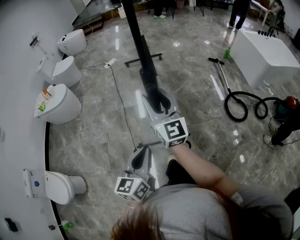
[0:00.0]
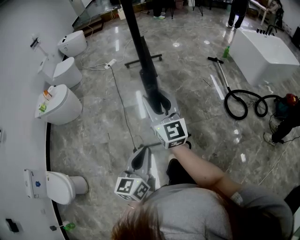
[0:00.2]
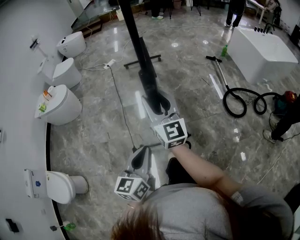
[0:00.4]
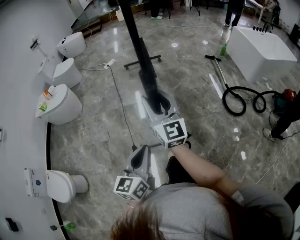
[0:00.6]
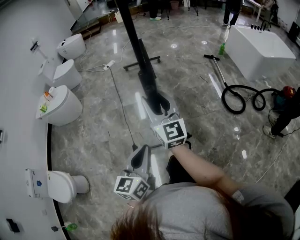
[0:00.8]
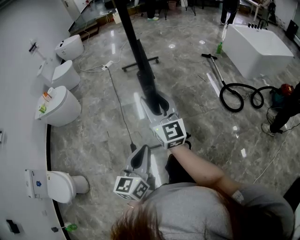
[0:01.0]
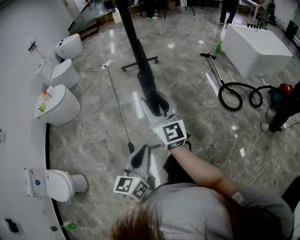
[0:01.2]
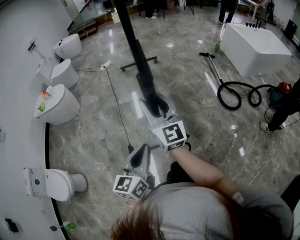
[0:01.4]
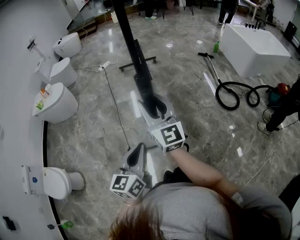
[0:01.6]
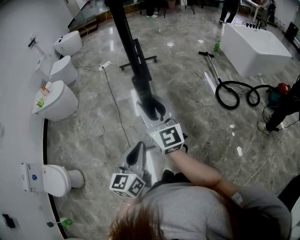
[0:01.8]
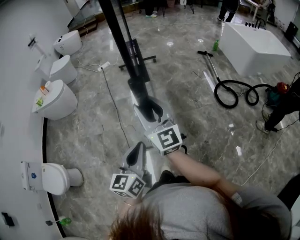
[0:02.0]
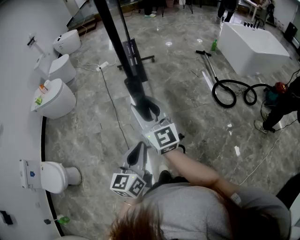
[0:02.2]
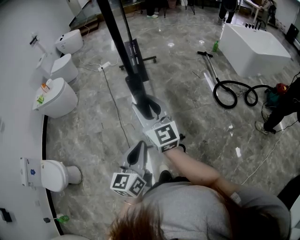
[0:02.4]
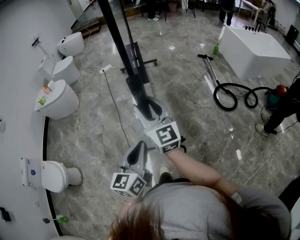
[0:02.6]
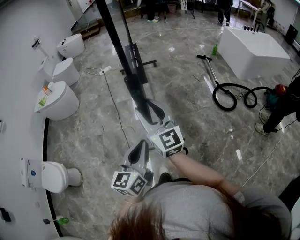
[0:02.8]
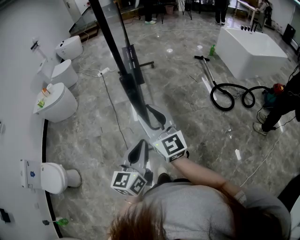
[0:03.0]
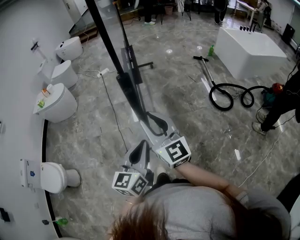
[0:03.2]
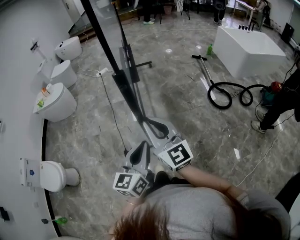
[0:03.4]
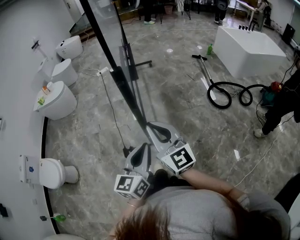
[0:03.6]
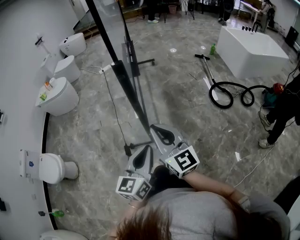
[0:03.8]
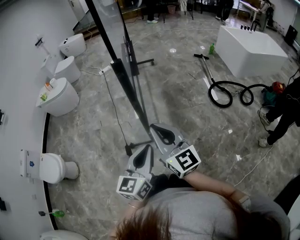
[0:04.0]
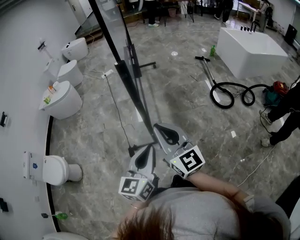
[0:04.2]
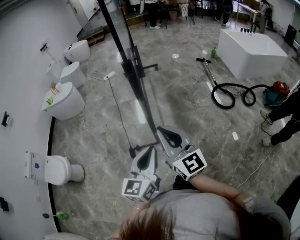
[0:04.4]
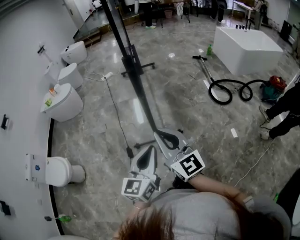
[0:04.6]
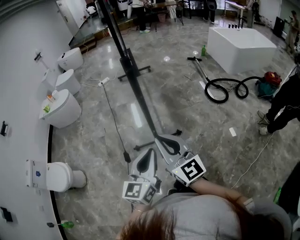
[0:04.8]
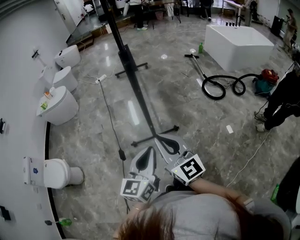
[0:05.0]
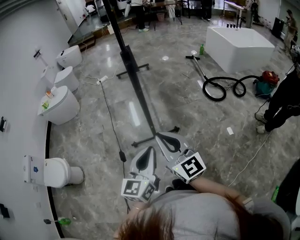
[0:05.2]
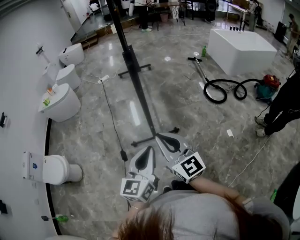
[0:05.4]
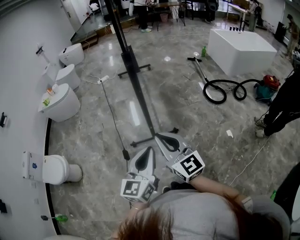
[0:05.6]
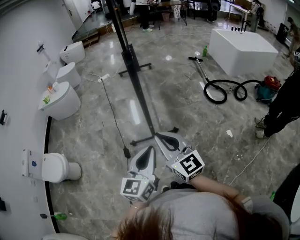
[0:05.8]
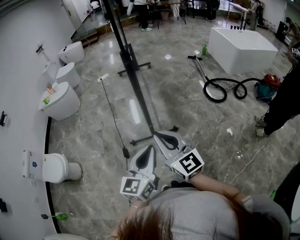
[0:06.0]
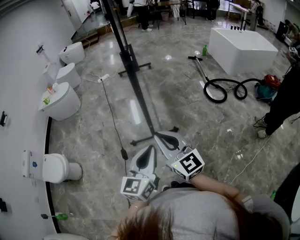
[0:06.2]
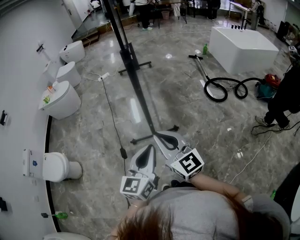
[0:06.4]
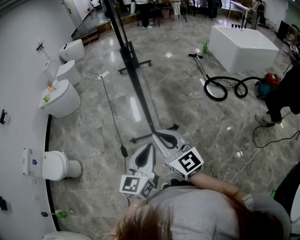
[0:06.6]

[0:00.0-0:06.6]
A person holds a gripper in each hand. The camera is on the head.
0.0 to 1.6 s: The grippers both shift backward by about 10 cm.
1.6 to 3.2 s: The right gripper goes approximately 15 cm backward; the left gripper heads to the right and backward, covering roughly 10 cm.
3.2 to 5.0 s: The two grippers go some 20 cm backward. The right gripper closes up.
5.0 to 6.6 s: There are only small adjustments of the grippers.

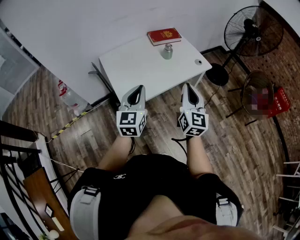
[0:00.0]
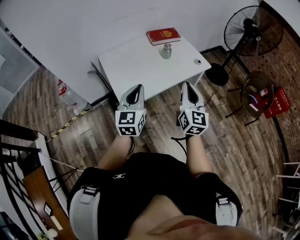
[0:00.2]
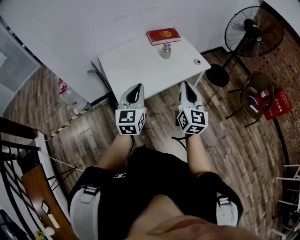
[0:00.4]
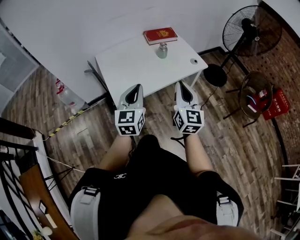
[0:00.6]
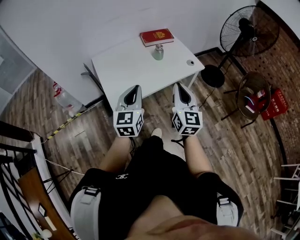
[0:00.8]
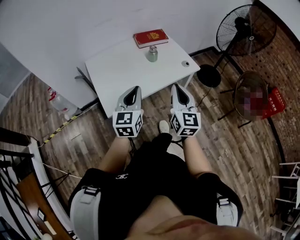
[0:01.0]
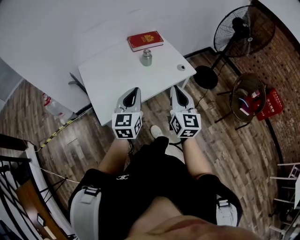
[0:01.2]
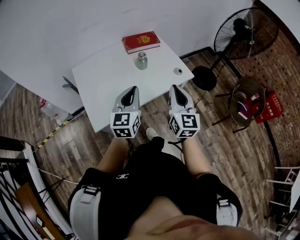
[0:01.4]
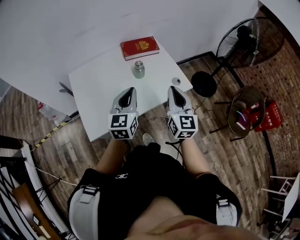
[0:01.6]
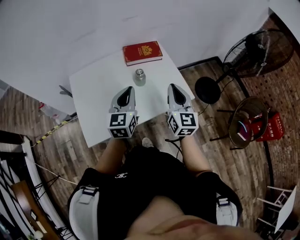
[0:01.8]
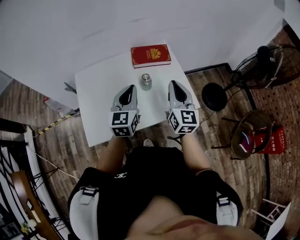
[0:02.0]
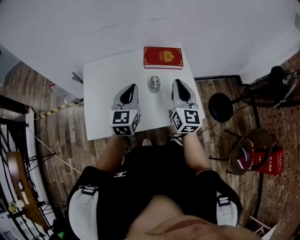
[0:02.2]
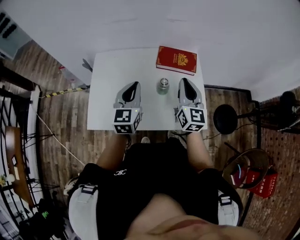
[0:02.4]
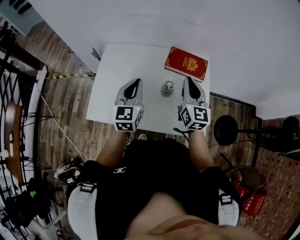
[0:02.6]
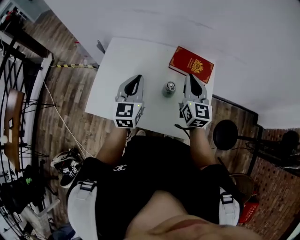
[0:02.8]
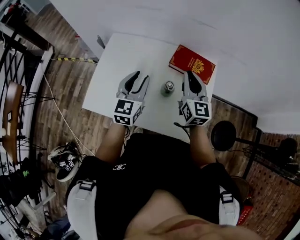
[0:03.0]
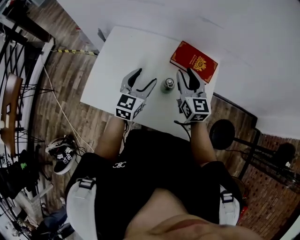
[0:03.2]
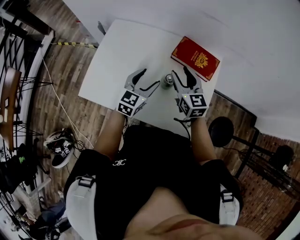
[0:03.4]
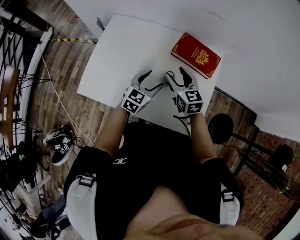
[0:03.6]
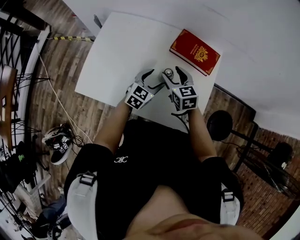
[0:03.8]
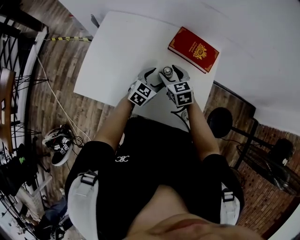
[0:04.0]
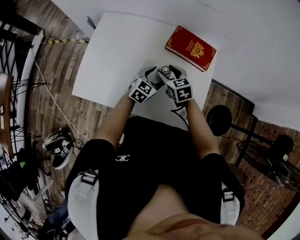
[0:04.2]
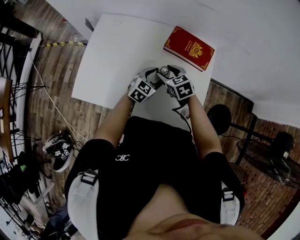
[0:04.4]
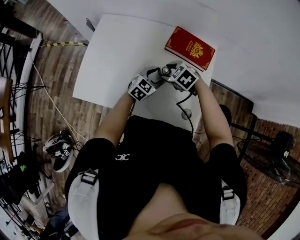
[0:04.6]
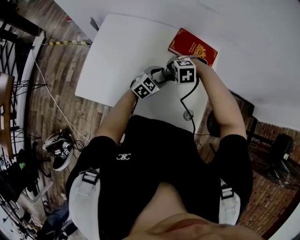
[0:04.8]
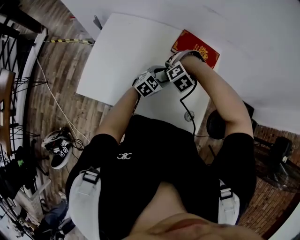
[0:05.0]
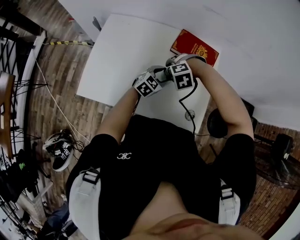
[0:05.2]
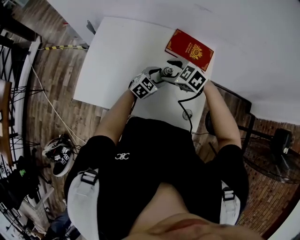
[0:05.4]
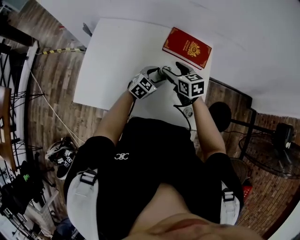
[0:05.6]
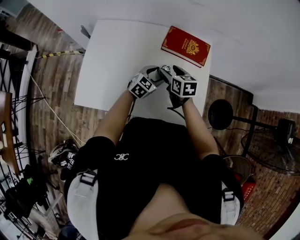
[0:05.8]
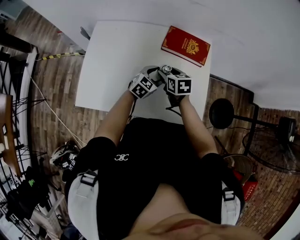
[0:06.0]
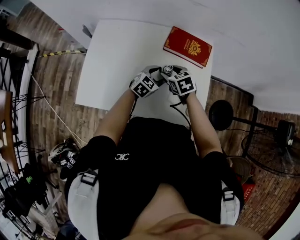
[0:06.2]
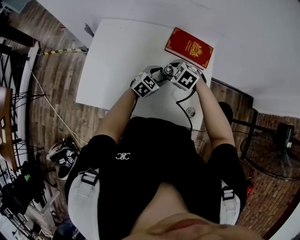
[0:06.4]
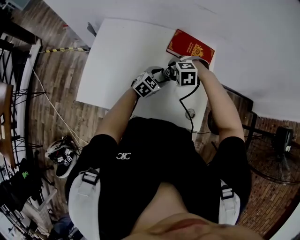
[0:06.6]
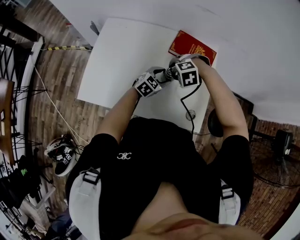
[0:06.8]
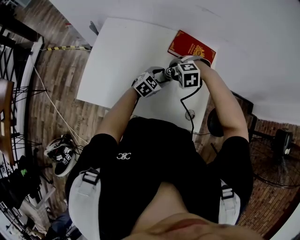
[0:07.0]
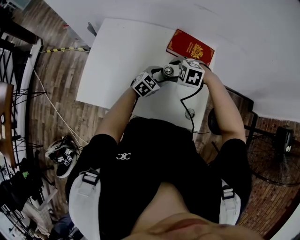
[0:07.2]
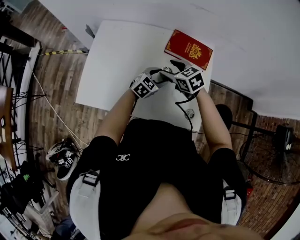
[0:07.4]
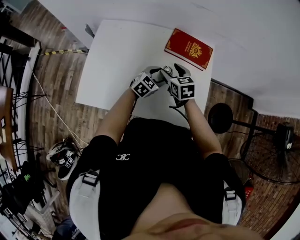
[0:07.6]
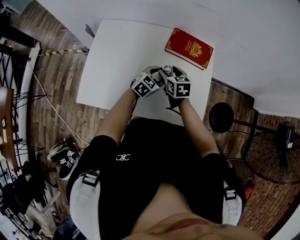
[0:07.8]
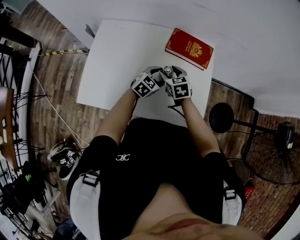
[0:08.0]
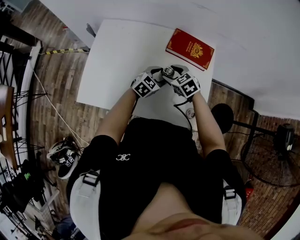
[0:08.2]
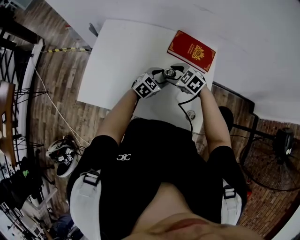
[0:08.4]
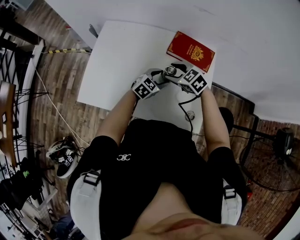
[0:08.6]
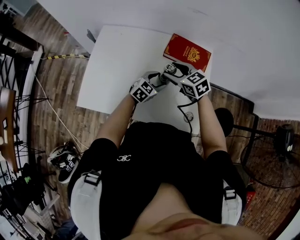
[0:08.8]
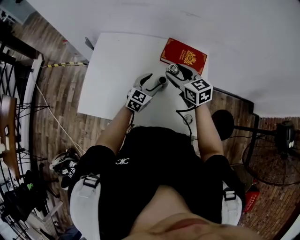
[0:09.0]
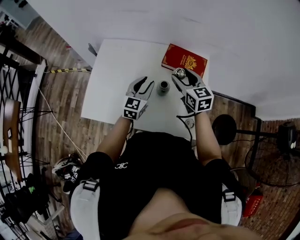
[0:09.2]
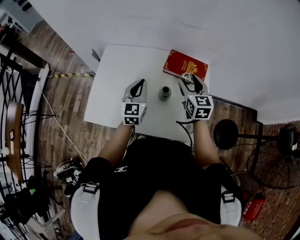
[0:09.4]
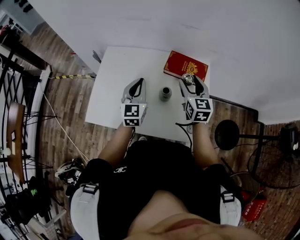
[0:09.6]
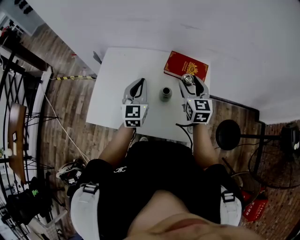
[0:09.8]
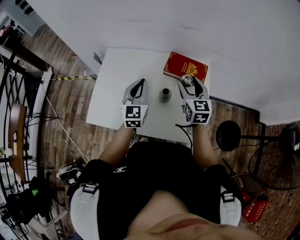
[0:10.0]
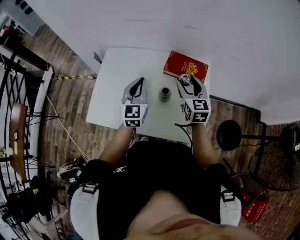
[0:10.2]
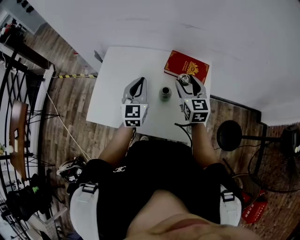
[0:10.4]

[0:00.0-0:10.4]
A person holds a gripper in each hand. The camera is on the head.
0.0 to 1.4 s: The grippers both shift forward and to the right by roughly 20 cm.
1.4 to 3.0 s: The right gripper changes place by some 40 cm, and rotates some 40 degrees. Meanwhile the left gripper ends up roughly 25 cm from where it was, and rotates about 40 degrees.
3.0 to 4.4 s: The right gripper is displaced downward by about 20 cm, angles its fingers downward, by approximately 40 degrees, and opens. The left gripper heads downward and to the right, covering about 25 cm, changes its angle by roughly 30 degrees, and opens.
4.4 to 6.0 s: The right gripper reaches some 5 cm upward, then returns, and changes its angle by roughly 30 degrees.
6.0 to 7.4 s: The right gripper travels upward by roughly 5 cm, and changes its angle by approximately 30 degrees.
7.4 to 9.0 s: Both grippers travel together upward, about 5 cm. The right gripper turns by approximately 20 degrees.
9.0 to 10.4 s: The left gripper heads upward and to the left, covering roughly 20 cm, turns by about 30 degrees, and closes, while the right gripper moves to the right, approximately 5 cm, and swivels roughly 20 degrees.

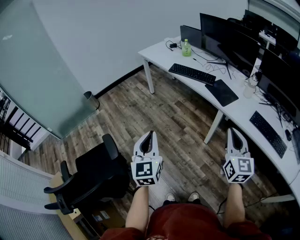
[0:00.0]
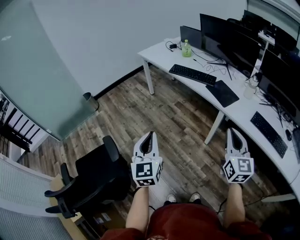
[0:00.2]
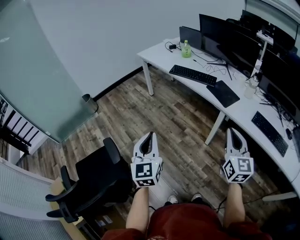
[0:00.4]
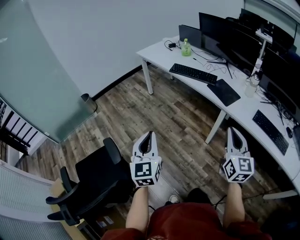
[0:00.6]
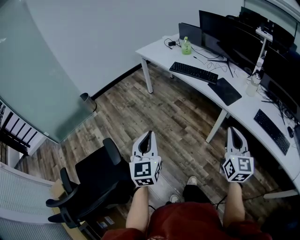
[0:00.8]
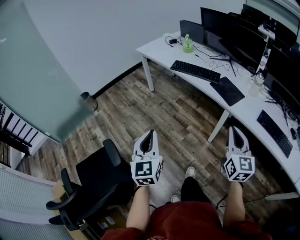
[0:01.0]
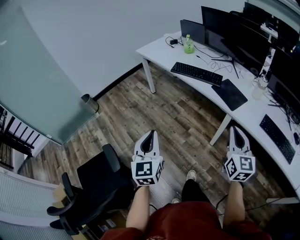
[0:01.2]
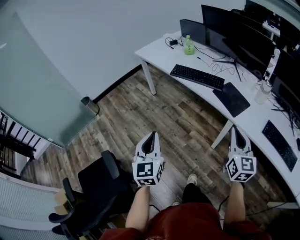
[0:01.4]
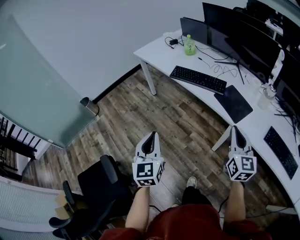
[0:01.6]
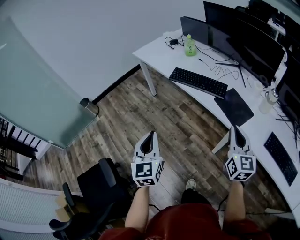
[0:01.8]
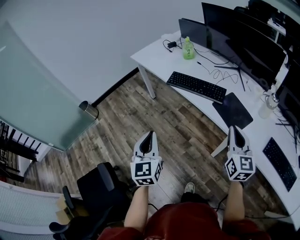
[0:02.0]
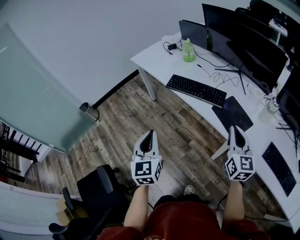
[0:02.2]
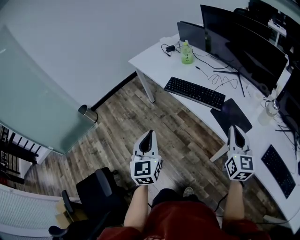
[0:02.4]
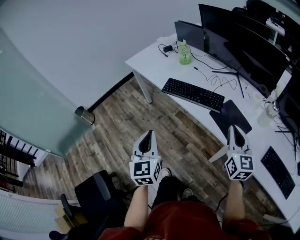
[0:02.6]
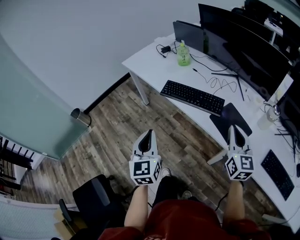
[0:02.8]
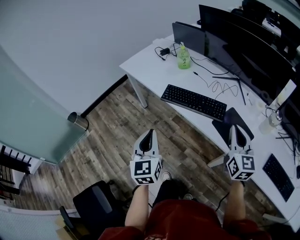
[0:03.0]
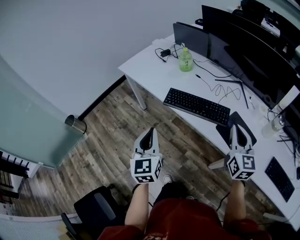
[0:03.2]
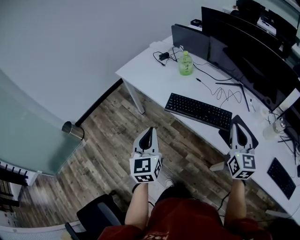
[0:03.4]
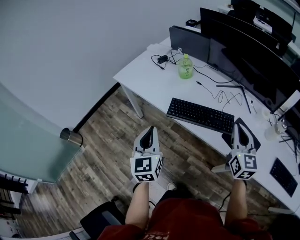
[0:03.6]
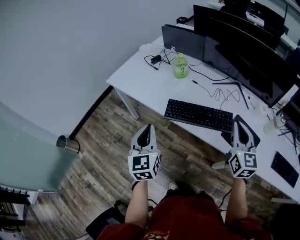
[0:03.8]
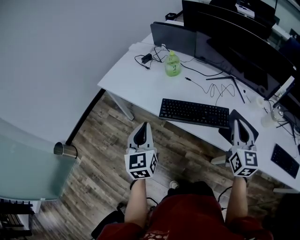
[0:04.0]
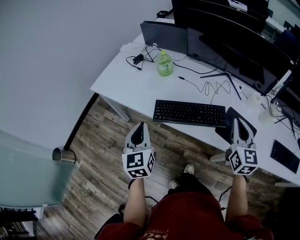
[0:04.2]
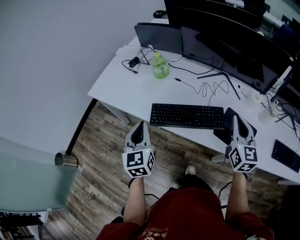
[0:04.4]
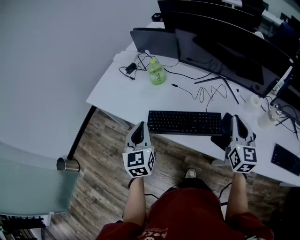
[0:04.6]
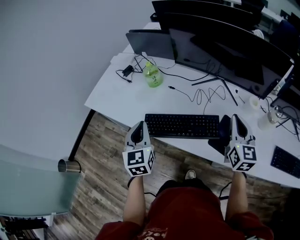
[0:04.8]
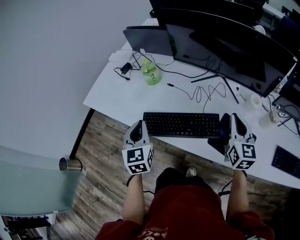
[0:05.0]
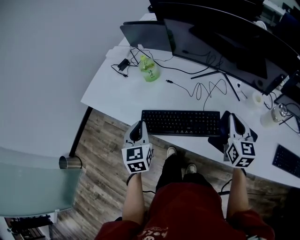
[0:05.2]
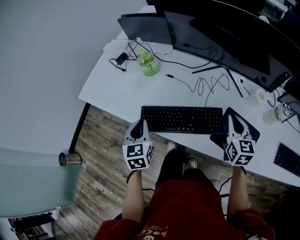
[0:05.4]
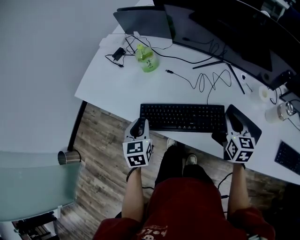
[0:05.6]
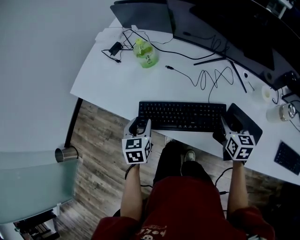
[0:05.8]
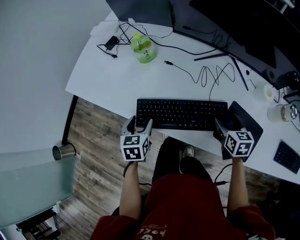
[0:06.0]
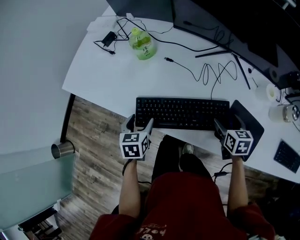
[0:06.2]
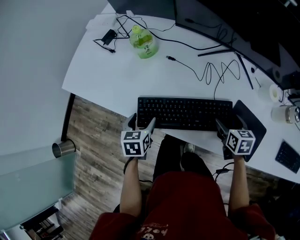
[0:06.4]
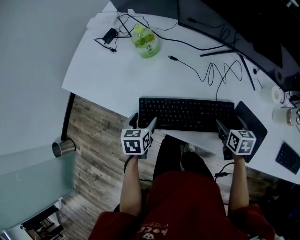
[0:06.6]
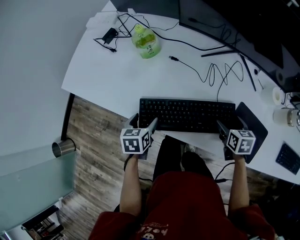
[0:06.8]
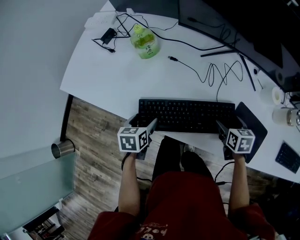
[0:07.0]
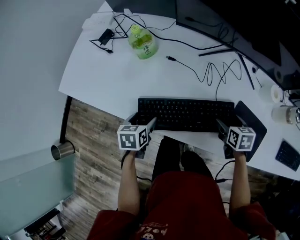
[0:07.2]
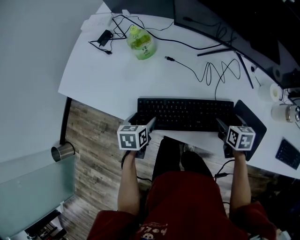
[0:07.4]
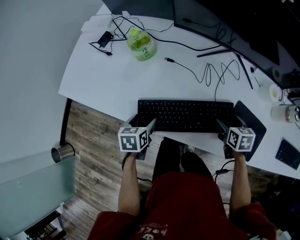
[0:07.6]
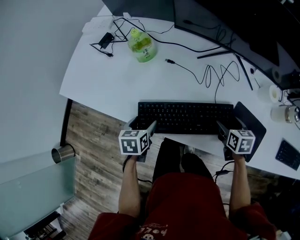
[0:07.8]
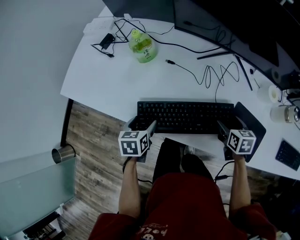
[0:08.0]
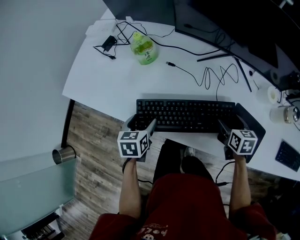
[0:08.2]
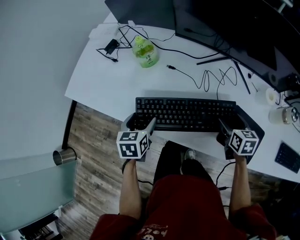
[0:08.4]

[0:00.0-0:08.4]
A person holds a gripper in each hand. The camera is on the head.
0.0 to 1.4 s: Both grippers move forward, some 15 cm.
1.4 to 2.8 s: Both grippers travel together forward, approximately 25 cm.
2.8 to 4.2 s: The left gripper travels forward by some 30 cm. Meanwhile the right gripper moves forward and to the left, some 15 cm, and rotates roughly 20 degrees.
4.2 to 5.6 s: The left gripper heads forward, downward and to the right, covering some 20 cm, and rotates approximately 20 degrees. Meanwhile the right gripper is displaced downward, forward and to the right by about 20 cm, and rotates some 20 degrees.
5.6 to 7.0 s: The two grippers go approximately 15 cm downward. The left gripper swivels about 30 degrees, and opens its fingers. Meanwhile the right gripper turns by roughly 30 degrees, and opens.
7.0 to 8.4 s: Both grippers move upward, about 5 cm.
